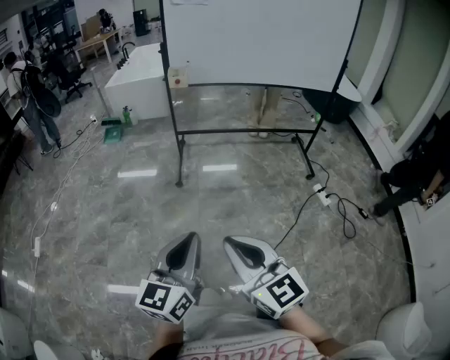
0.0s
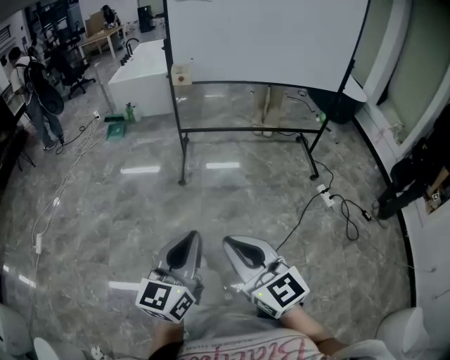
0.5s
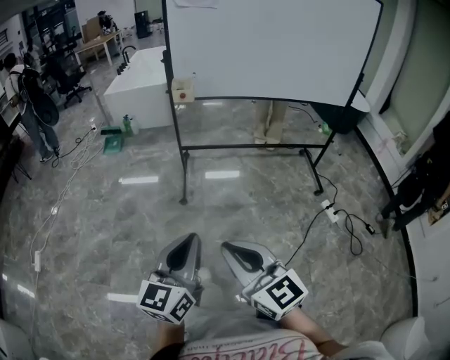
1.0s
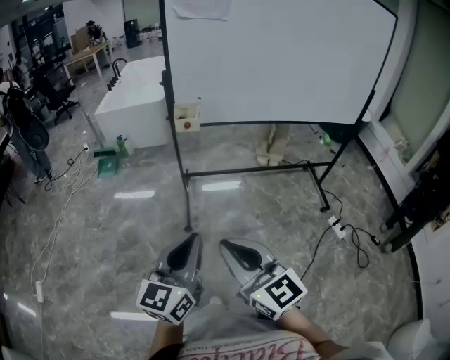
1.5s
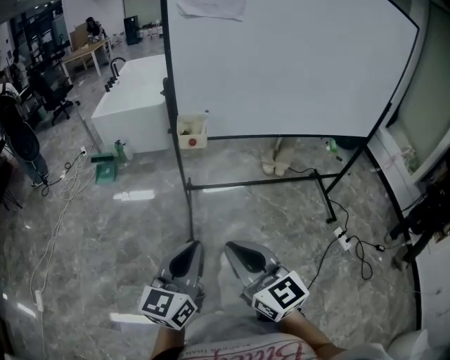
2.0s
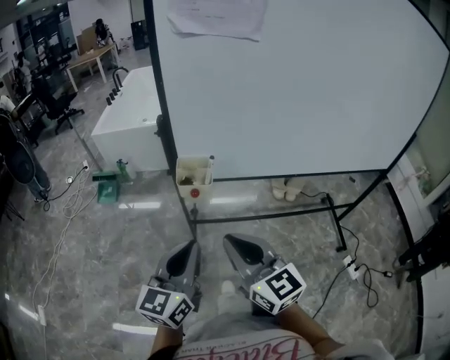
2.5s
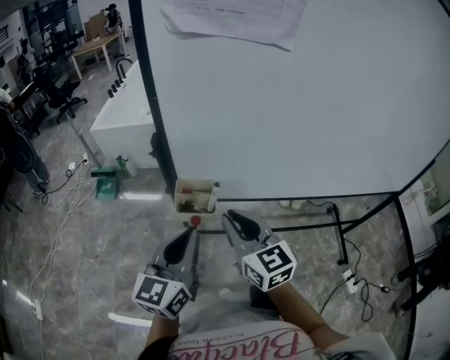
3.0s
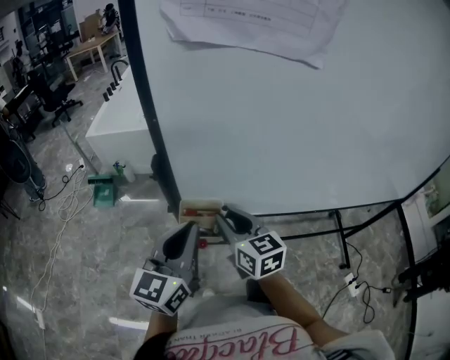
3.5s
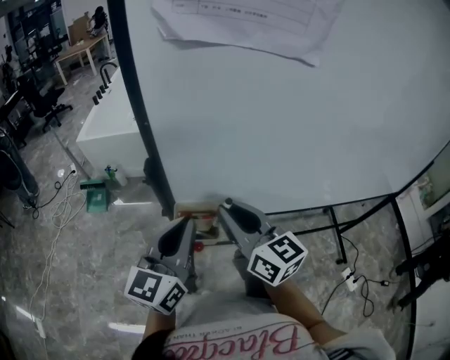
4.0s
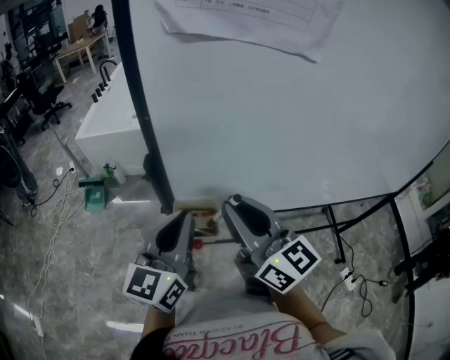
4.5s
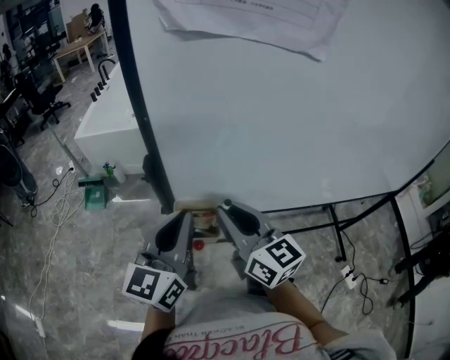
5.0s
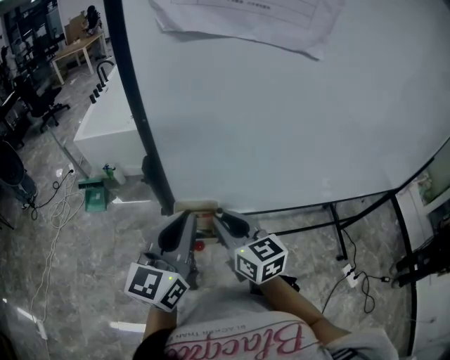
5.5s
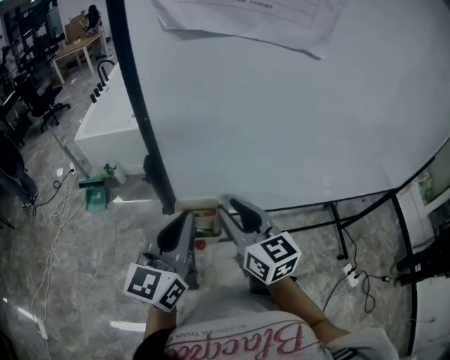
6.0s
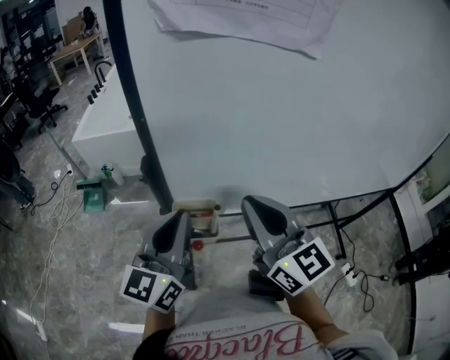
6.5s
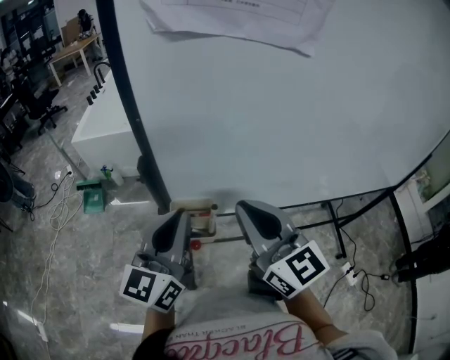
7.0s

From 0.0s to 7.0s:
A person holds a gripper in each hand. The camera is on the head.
From 0.0s to 2.0s: The two grippers go about 35 cm forward.
From 2.0s to 3.5s: Both grippers travel together forward, roughly 35 cm. The right gripper opens up.
From 3.5s to 5.0s: The right gripper heads upward, covering roughly 5 cm.
From 5.0s to 7.0s: The right gripper is displaced upward by about 5 cm.

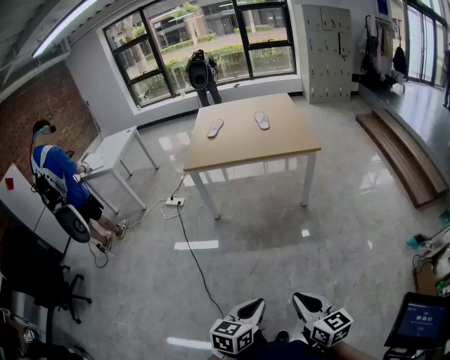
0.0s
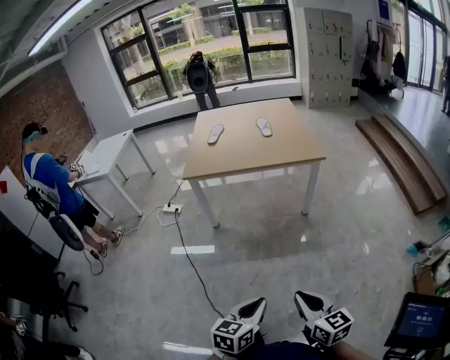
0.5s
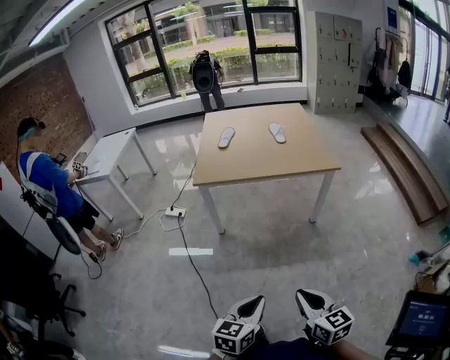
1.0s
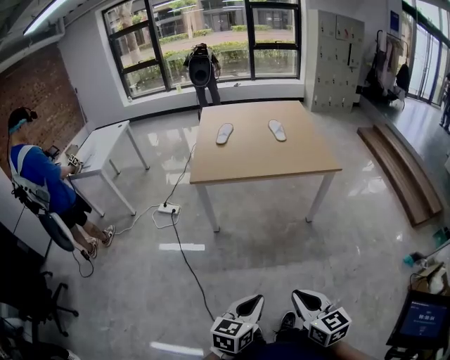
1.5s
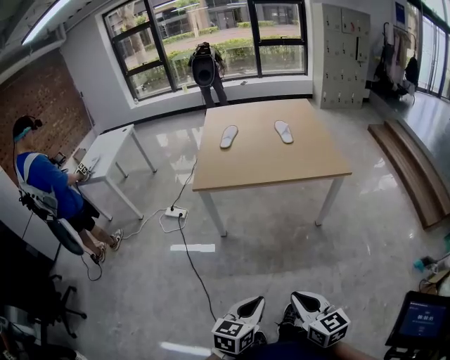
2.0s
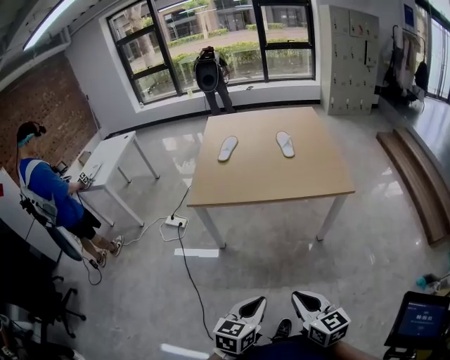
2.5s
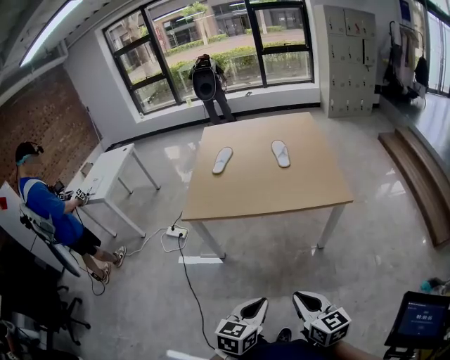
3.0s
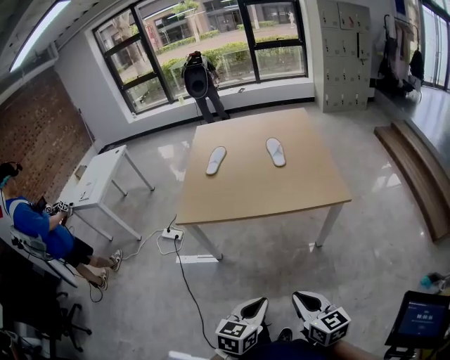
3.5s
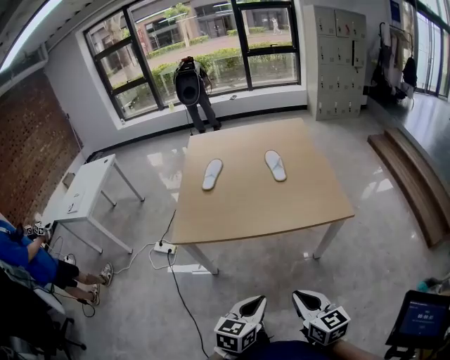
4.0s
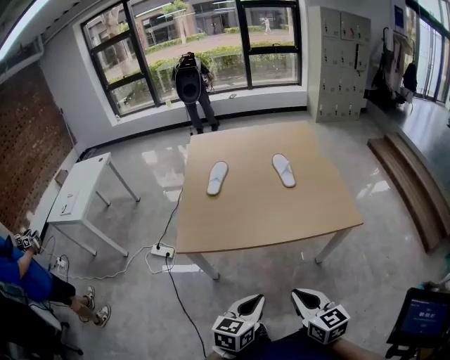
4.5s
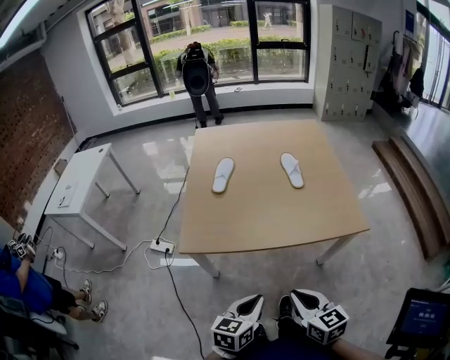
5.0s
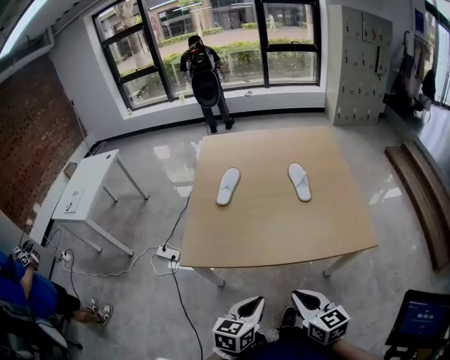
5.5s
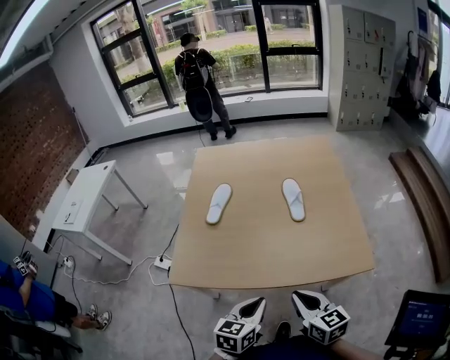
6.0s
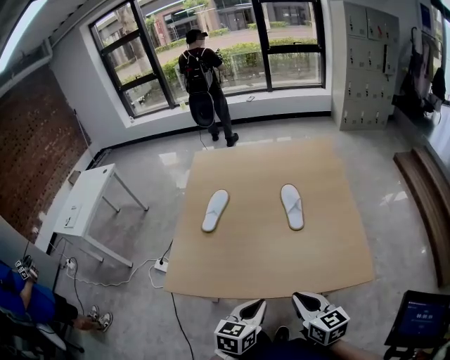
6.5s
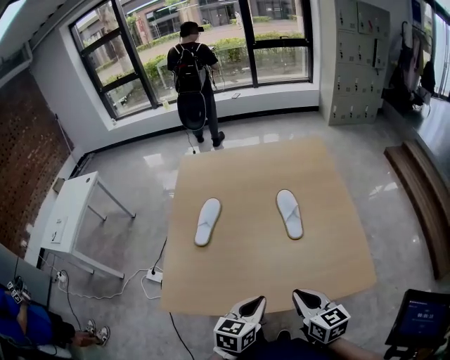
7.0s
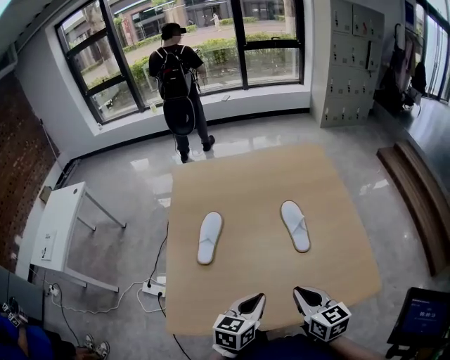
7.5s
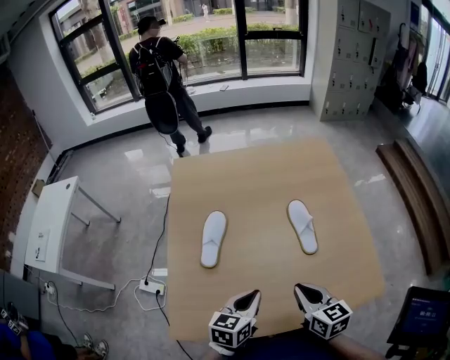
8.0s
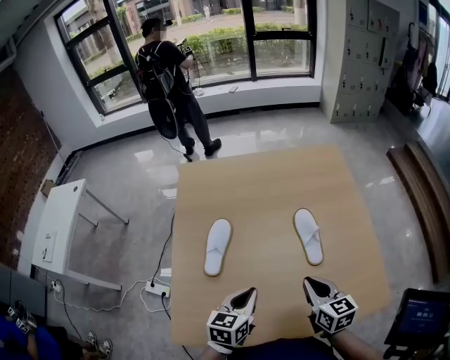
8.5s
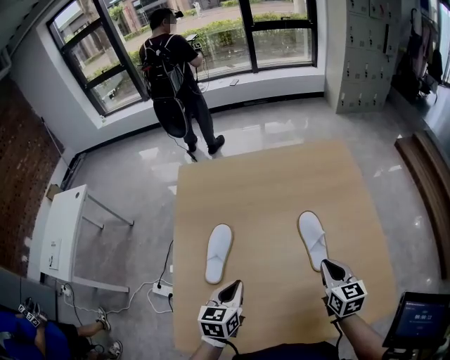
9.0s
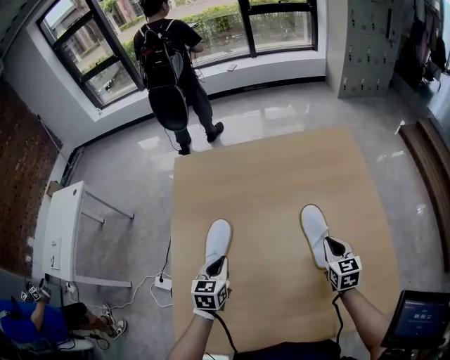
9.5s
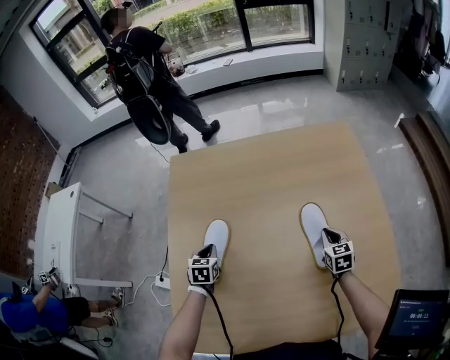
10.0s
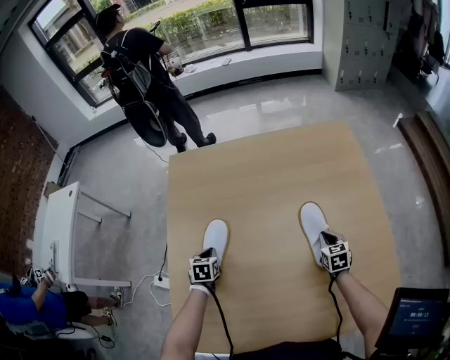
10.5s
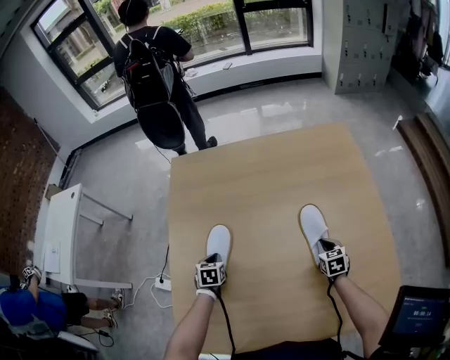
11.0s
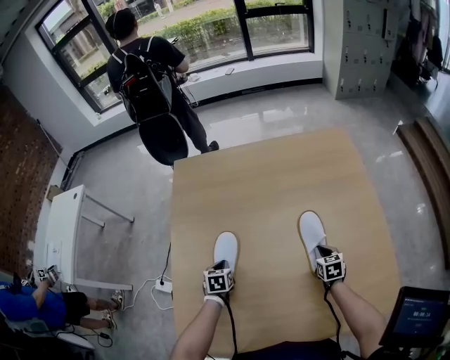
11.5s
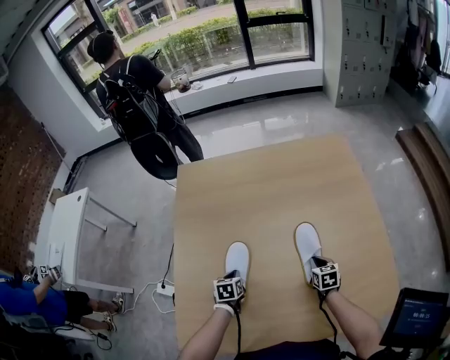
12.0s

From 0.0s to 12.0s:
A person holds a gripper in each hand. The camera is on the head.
From 0.0s to 2.0s: Both grippers move forward and to the left, roughly 25 cm.
From 2.0s to 4.0s: Both grippers move forward, roughly 30 cm.
From 4.0s to 6.0s: The grippers both shift forward by approximately 25 cm.
From 6.0s to 8.0s: The right gripper is displaced forward by about 25 cm; the left gripper shifts approximately 25 cm forward and to the left.
From 8.0s to 10.0s: The right gripper goes approximately 35 cm forward, downward and to the right, and swivels some 20 degrees; the left gripper is displaced forward, to the left and downward by about 35 cm, and turns by roughly 30 degrees.
From 10.0s to 12.0s: The right gripper moves backward and downward, approximately 10 cm. Meanwhile the left gripper travels backward, to the right and downward by roughly 15 cm.

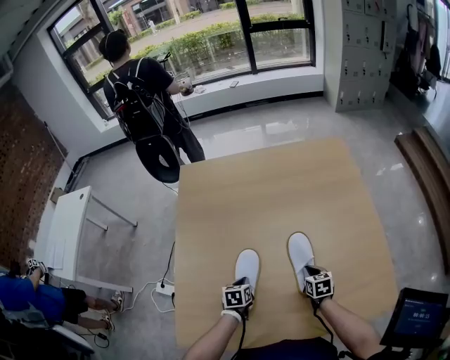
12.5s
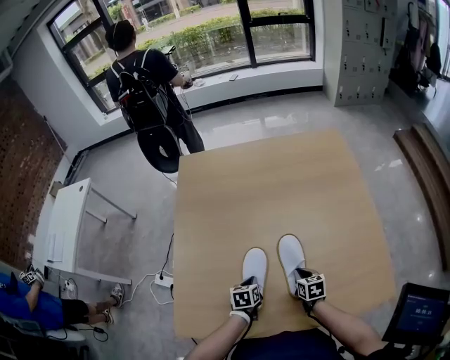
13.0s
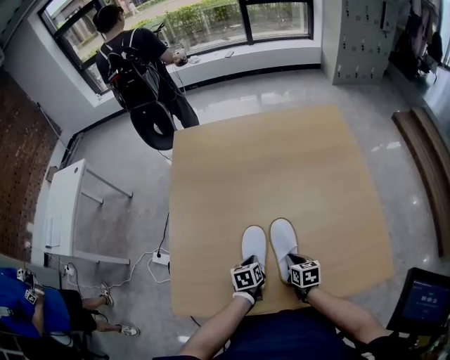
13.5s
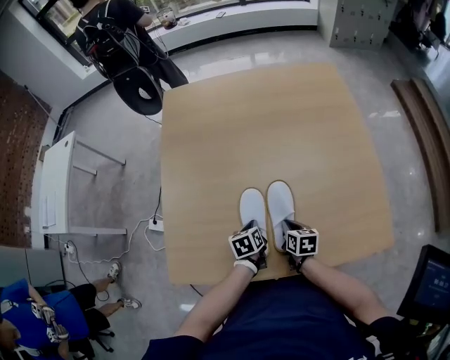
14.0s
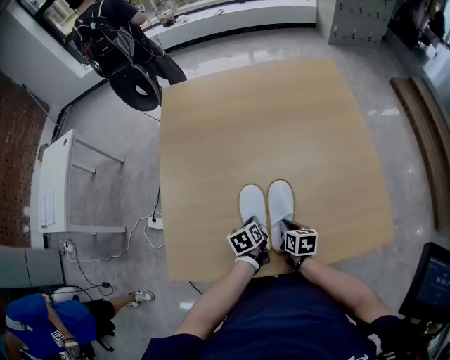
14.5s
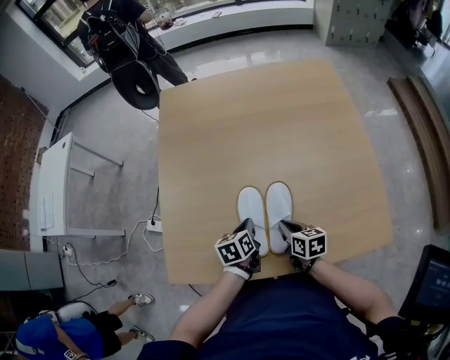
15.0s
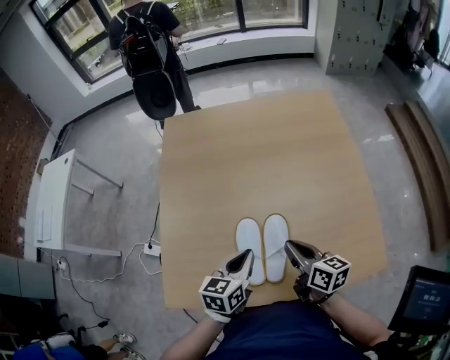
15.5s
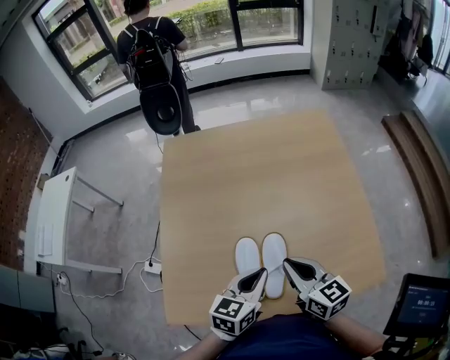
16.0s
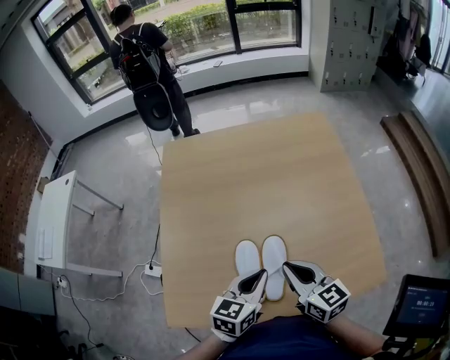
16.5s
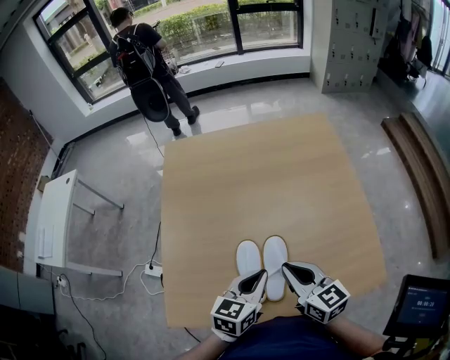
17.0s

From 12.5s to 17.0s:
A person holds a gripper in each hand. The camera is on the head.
From 12.5s to 14.5s: The left gripper goes approximately 10 cm backward and to the right, and turns by some 20 degrees. The right gripper heads backward and to the left, covering approximately 15 cm.
From 14.5s to 17.0s: Both grippers travel together upward, approximately 25 cm. The right gripper points its fingers some 30 degrees further upward. The left gripper changes its angle by roughly 50 degrees.

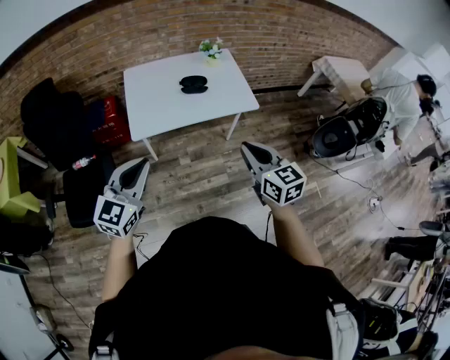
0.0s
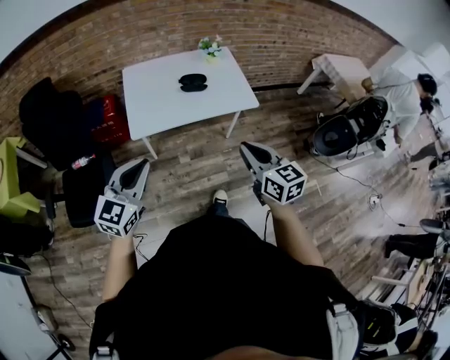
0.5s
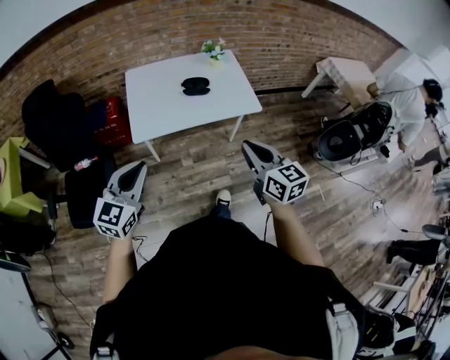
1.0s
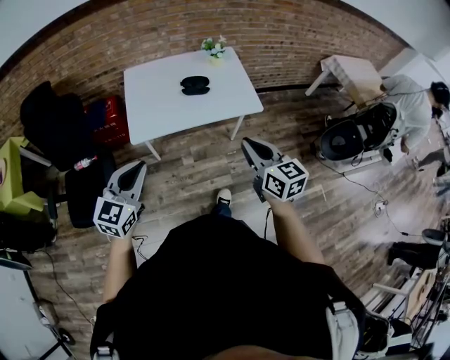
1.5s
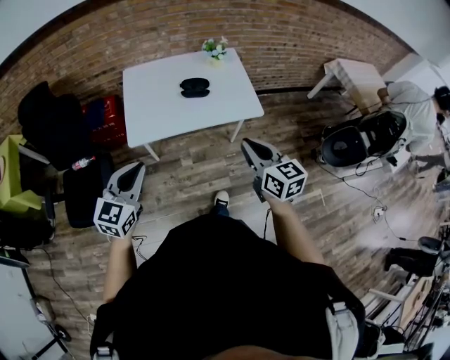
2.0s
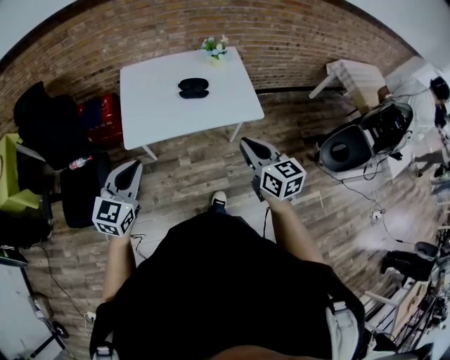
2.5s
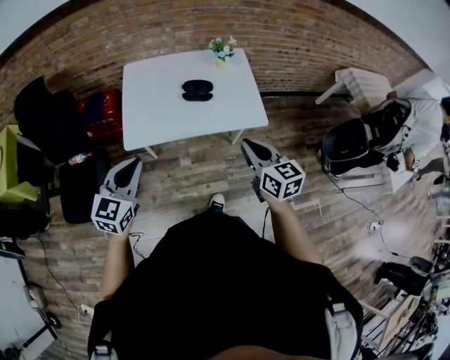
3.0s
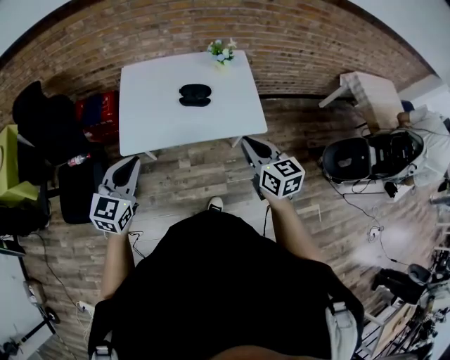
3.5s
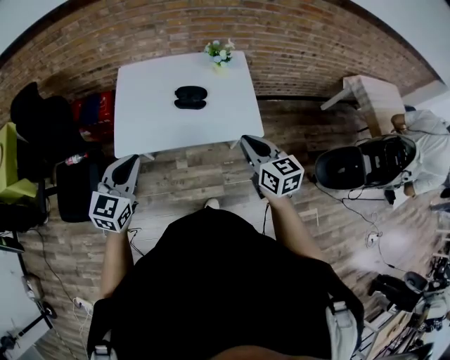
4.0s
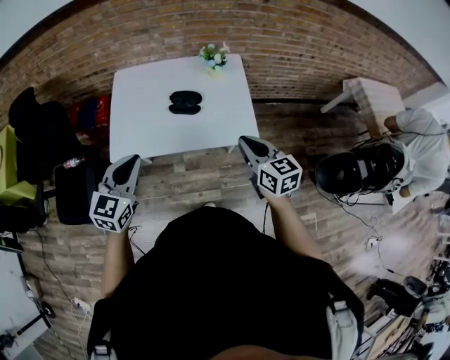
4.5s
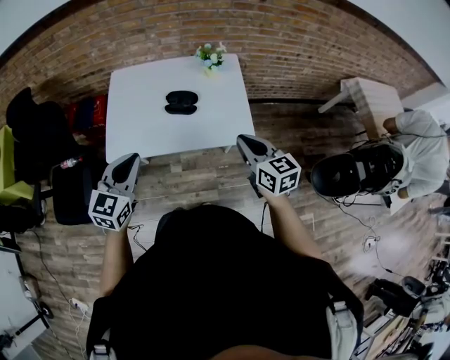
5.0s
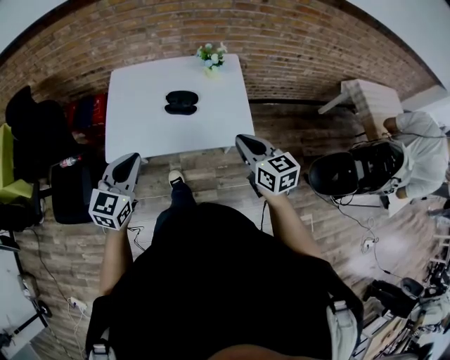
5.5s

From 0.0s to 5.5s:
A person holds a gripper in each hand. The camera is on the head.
From 0.0s to 2.0s: The grippers both shift forward by roughly 10 cm.
From 2.0s to 3.5s: Both grippers travel together forward, roughly 15 cm.
From 3.5s to 5.5s: The two grippers go about 10 cm to the right and forward.
